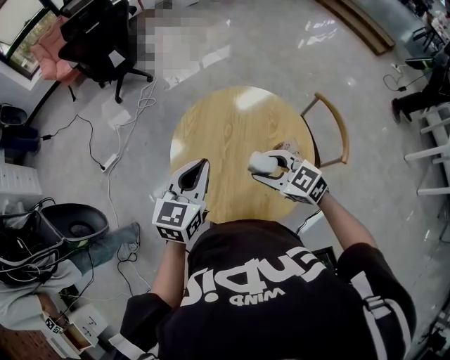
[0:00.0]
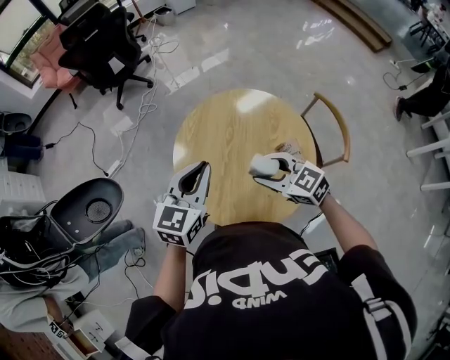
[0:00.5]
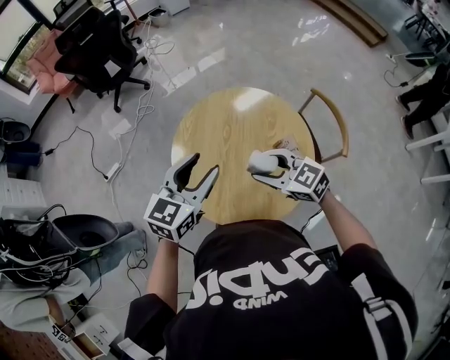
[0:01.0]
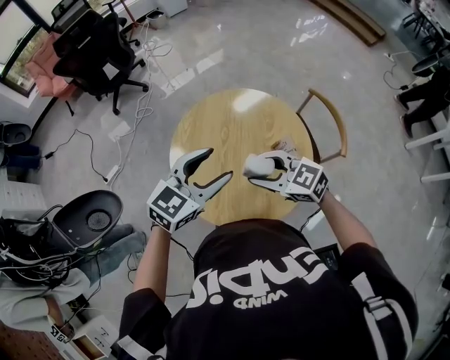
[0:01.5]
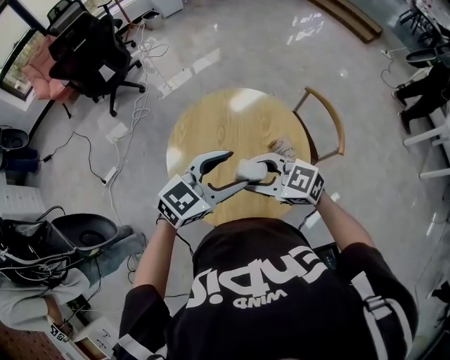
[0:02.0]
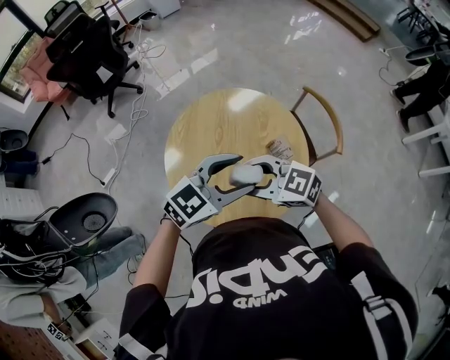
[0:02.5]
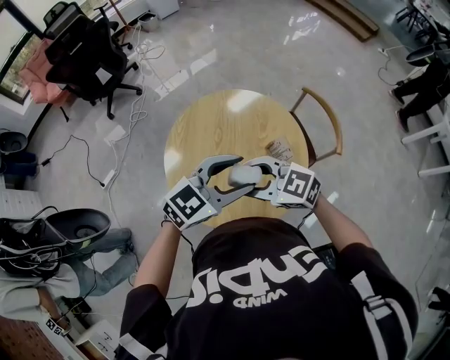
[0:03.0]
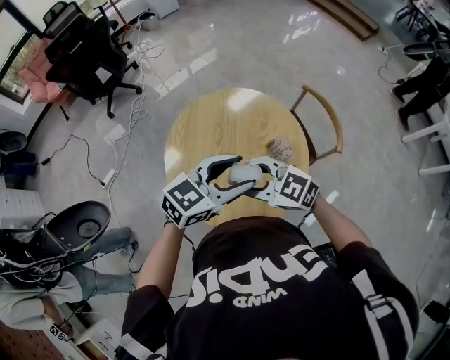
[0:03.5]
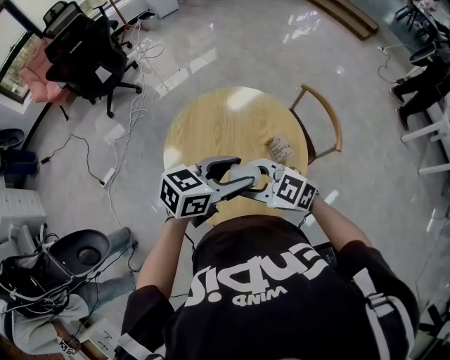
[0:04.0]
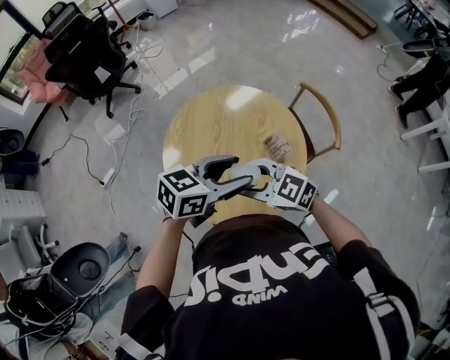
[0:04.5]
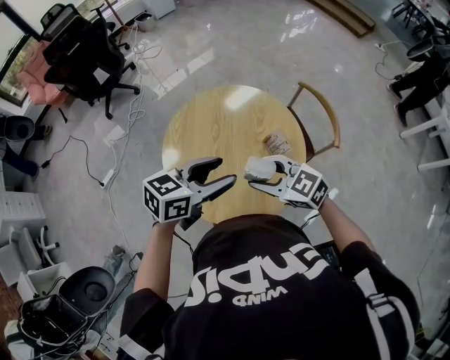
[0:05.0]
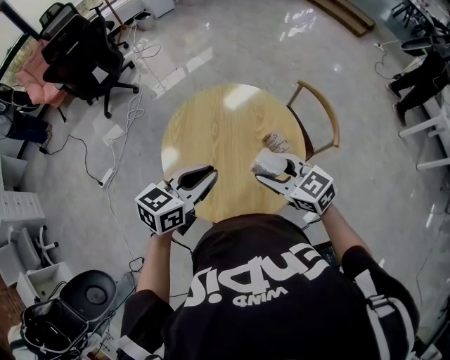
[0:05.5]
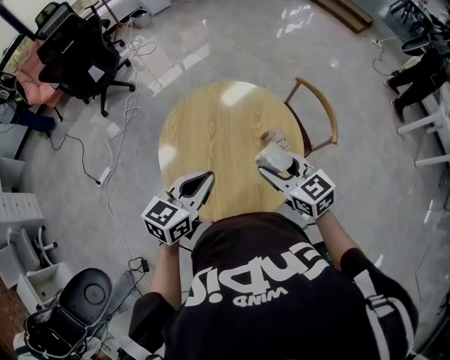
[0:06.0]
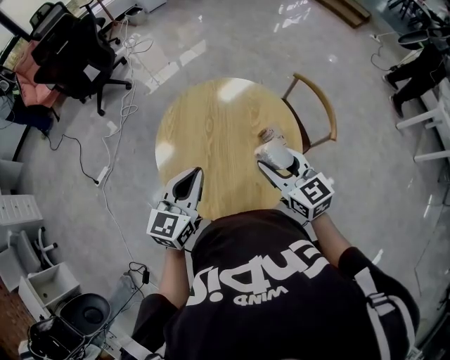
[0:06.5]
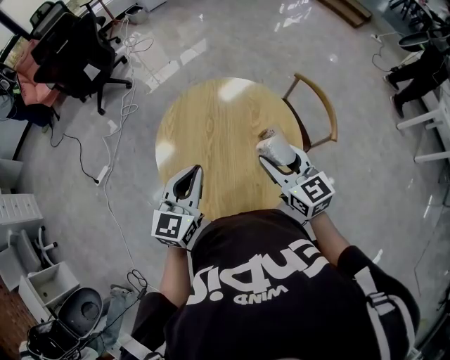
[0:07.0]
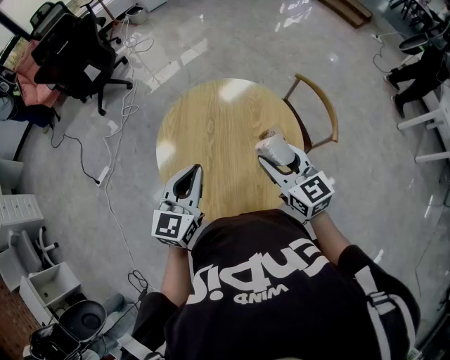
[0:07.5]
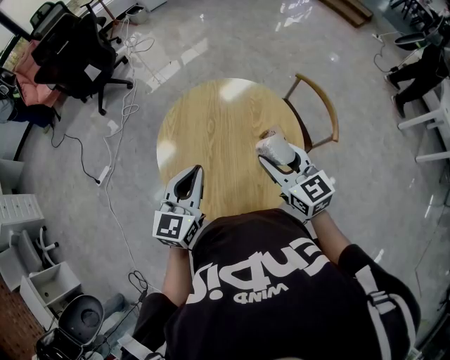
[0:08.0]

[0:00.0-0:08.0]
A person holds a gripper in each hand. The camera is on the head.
0:00.0 to 0:02.0: The left gripper moves about 10 cm, swivels some 40 degrees, and opens, while the right gripper moves some 5 cm.
0:02.0 to 0:04.0: The left gripper changes its angle by about 20 degrees.
0:04.0 to 0:06.0: The left gripper shifts by roughly 10 cm, swivels roughly 20 degrees, and closes its fingers. The right gripper changes place by approximately 10 cm, and swivels roughly 40 degrees.
0:06.0 to 0:08.0: The left gripper changes its angle by about 20 degrees.

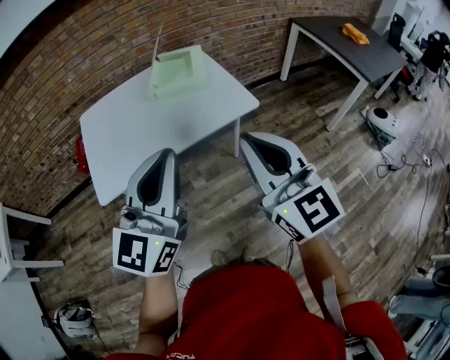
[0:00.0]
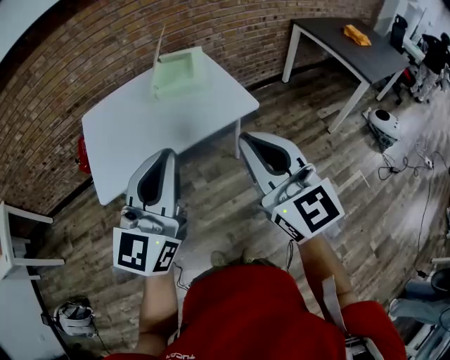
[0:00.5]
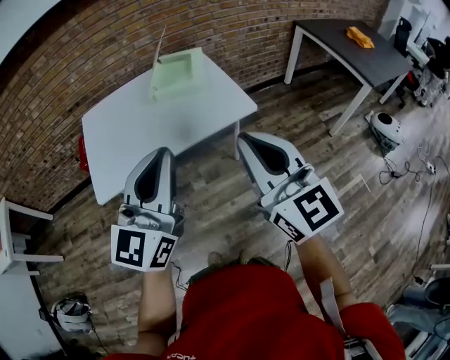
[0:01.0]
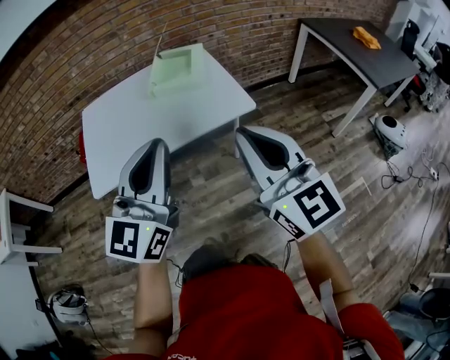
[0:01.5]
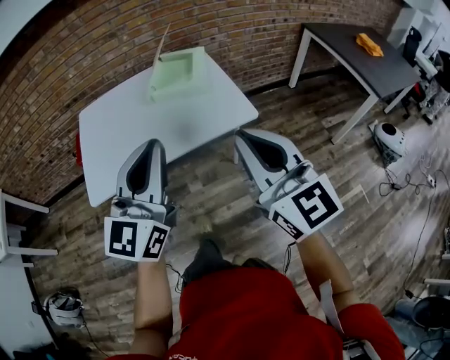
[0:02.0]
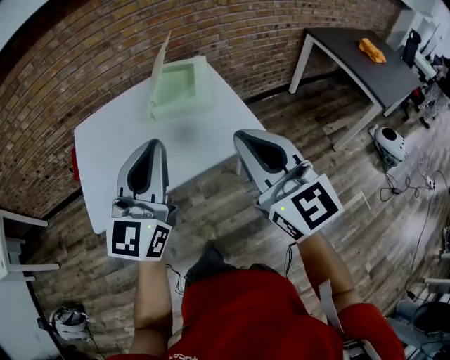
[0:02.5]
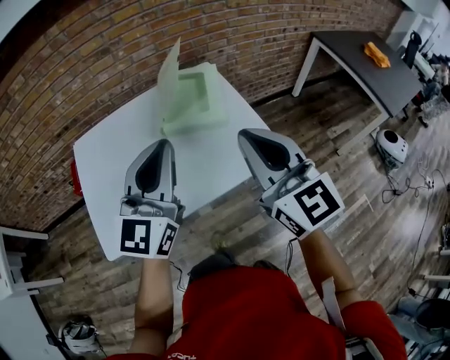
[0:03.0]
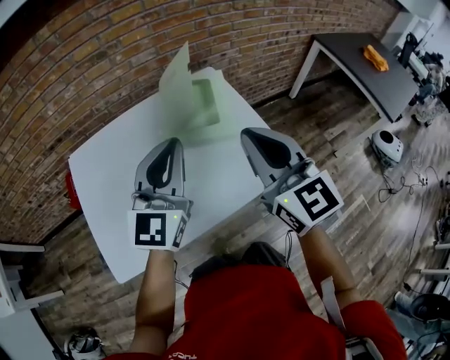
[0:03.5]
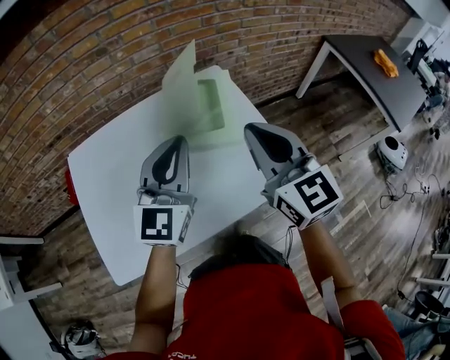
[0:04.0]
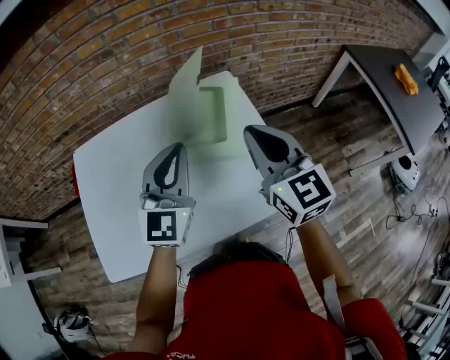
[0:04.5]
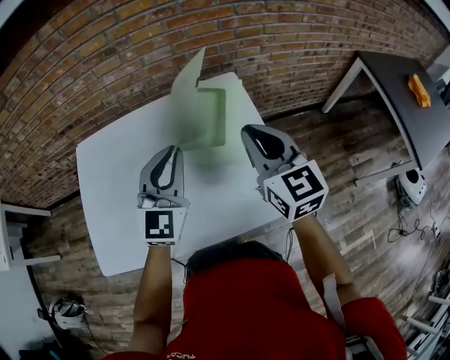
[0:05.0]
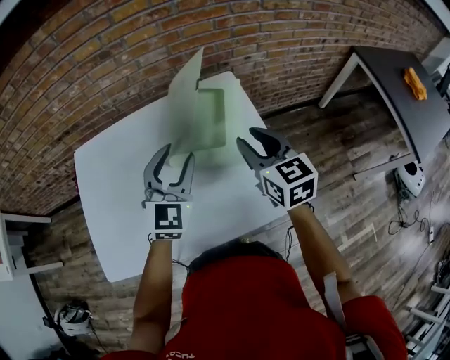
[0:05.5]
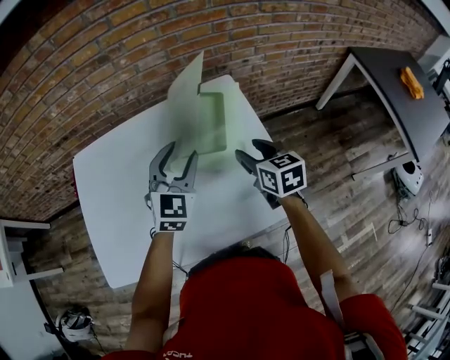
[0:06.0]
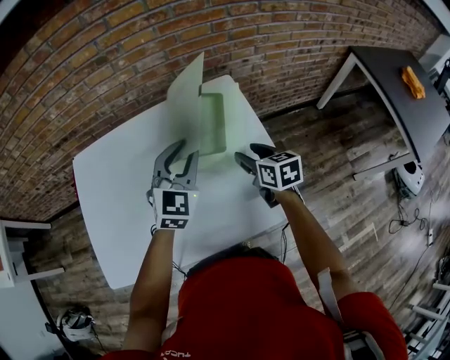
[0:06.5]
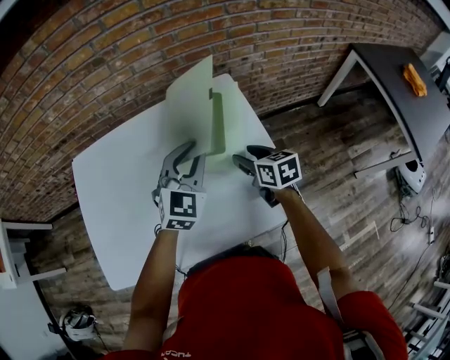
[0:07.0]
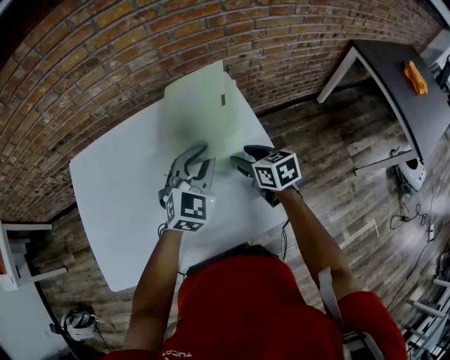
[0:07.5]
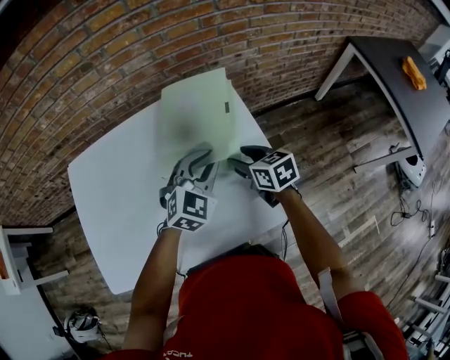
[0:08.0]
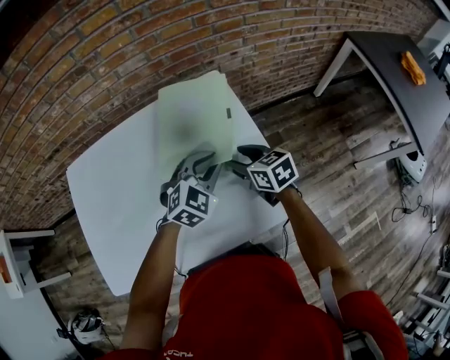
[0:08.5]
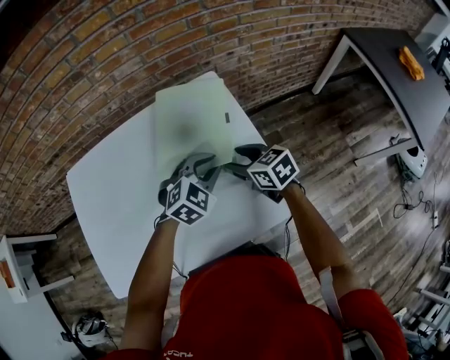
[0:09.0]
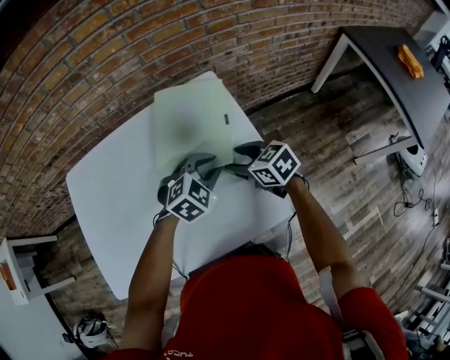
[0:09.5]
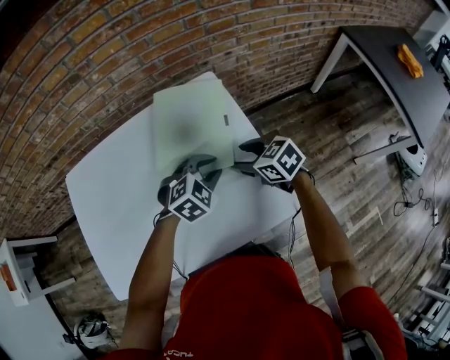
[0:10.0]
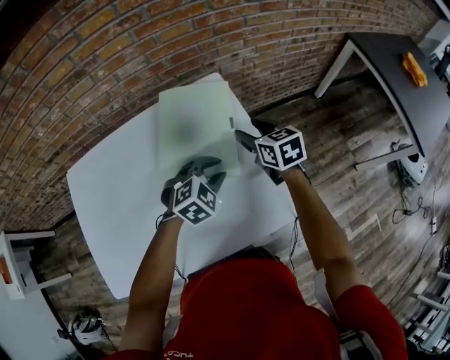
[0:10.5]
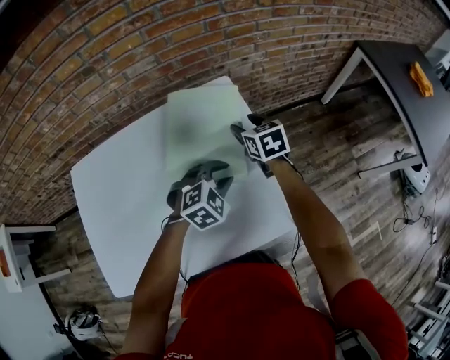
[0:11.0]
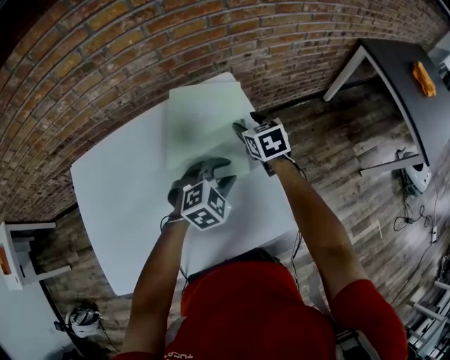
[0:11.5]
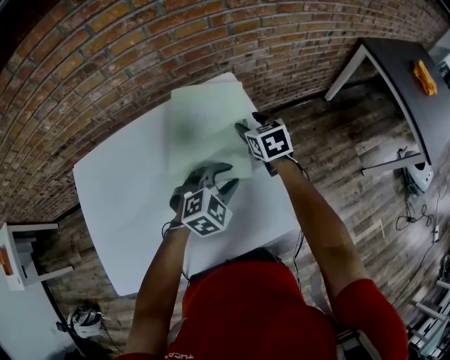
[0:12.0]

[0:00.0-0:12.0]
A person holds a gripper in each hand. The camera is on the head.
0:00.0 to 0:02.0: Both grippers travel together forward, about 5 cm.
0:02.0 to 0:04.0: The grippers both shift forward by approximately 35 cm.
0:04.0 to 0:06.0: The left gripper is displaced downward and forward by some 15 cm, swivels some 30 degrees, and opens its fingers. The right gripper travels downward and forward by roughly 25 cm, rotates approximately 30 degrees, and opens up.
0:06.0 to 0:08.0: The right gripper shifts approximately 5 cm downward, while the left gripper is displaced to the right and downward by approximately 10 cm, swivels roughly 20 degrees, and closes up.
0:08.0 to 0:10.0: The left gripper moves downward, about 5 cm, and swivels about 20 degrees.
0:10.0 to 0:12.0: The right gripper goes some 15 cm forward, and rotates some 30 degrees.

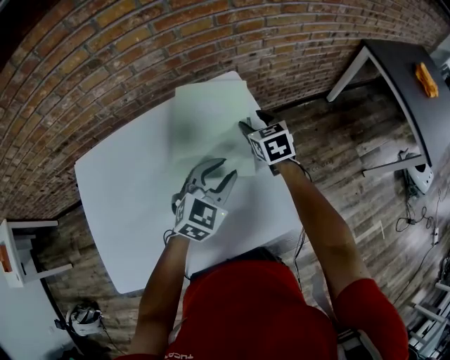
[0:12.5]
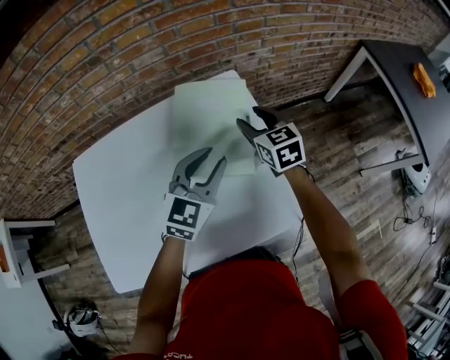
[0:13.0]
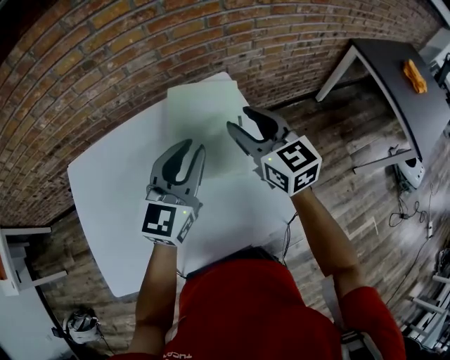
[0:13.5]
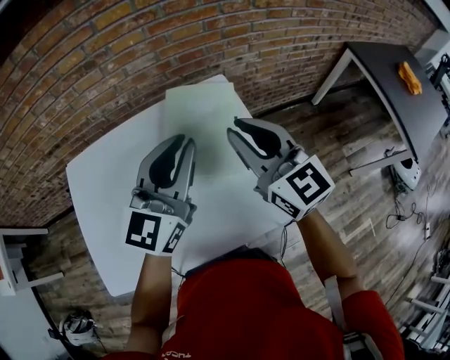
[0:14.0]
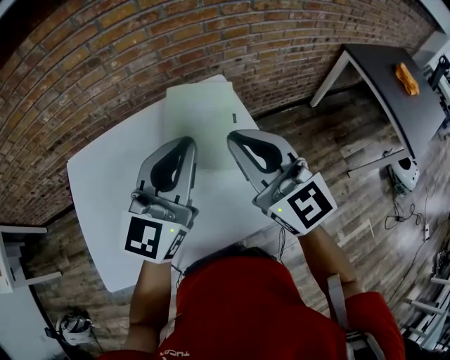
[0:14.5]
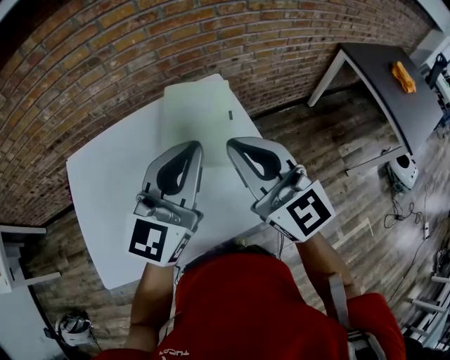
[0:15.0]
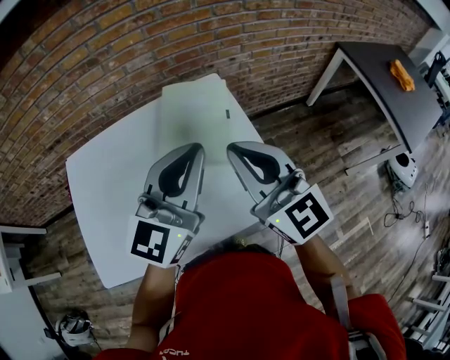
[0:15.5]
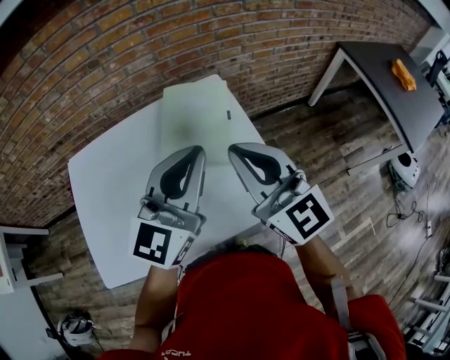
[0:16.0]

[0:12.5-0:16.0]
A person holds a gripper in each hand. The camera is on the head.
0:12.5 to 0:14.5: The left gripper goes roughly 20 cm upward, points its fingers some 40 degrees further upward, and closes up, while the right gripper travels upward and backward by approximately 35 cm, angles its fingers upward, by roughly 40 degrees, and closes its fingers.
0:14.5 to 0:16.0: The left gripper moves about 5 cm.

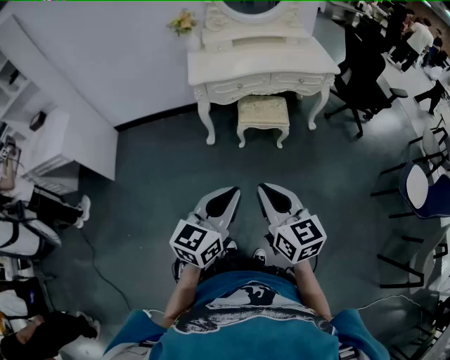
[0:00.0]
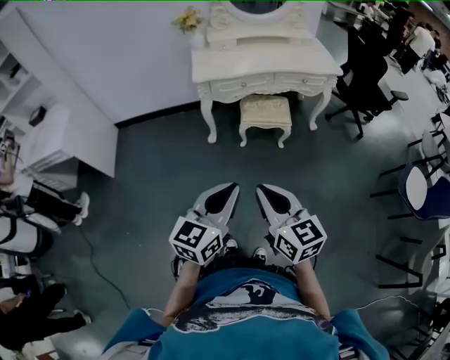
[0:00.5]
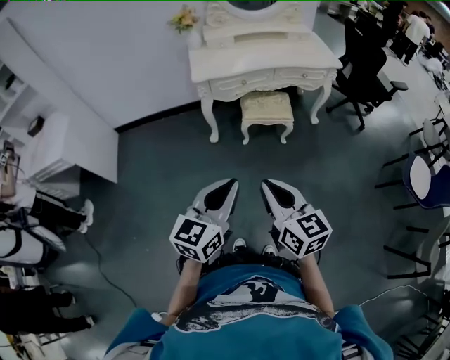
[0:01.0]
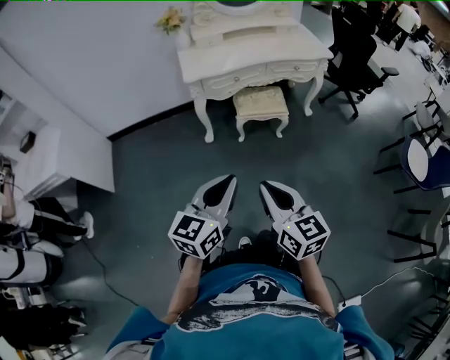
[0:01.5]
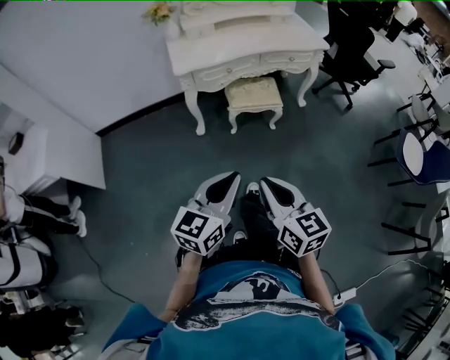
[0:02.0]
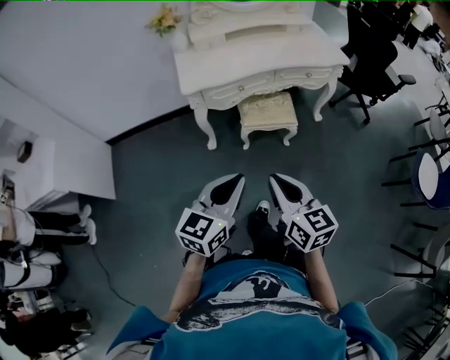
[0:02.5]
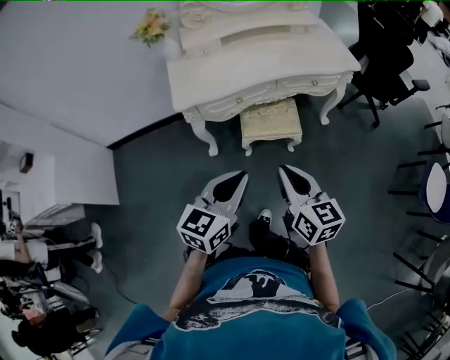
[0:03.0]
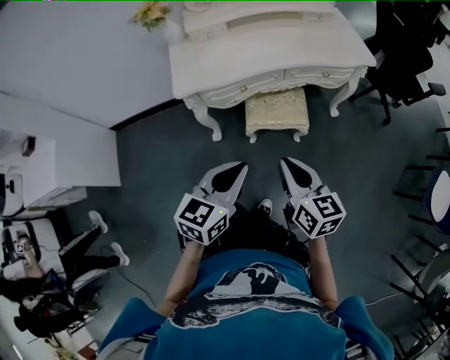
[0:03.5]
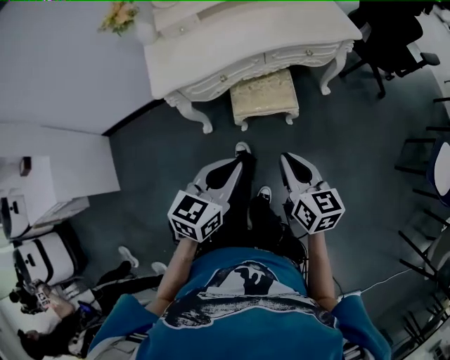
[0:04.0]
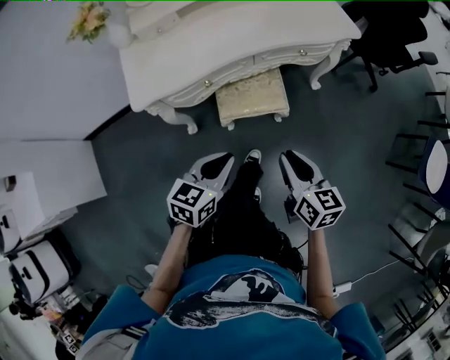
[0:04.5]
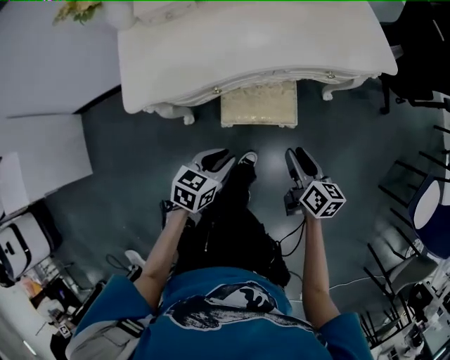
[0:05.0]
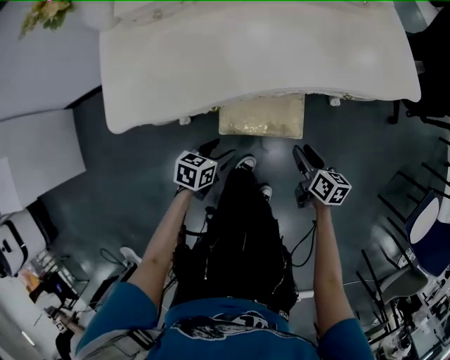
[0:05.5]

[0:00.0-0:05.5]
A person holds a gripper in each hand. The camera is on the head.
0:00.0 to 0:02.0: Both grippers move to the left, about 5 cm.
0:02.0 to 0:03.5: The two grippers go about 30 cm forward.
0:03.5 to 0:05.5: The grippers both shift downward and forward by approximately 40 cm. The left gripper swivels some 40 degrees, and opens up, while the right gripper swivels some 30 degrees, and opens.
